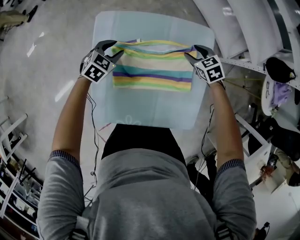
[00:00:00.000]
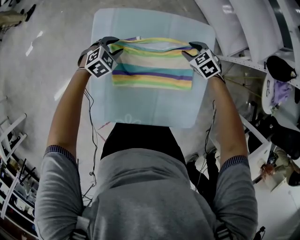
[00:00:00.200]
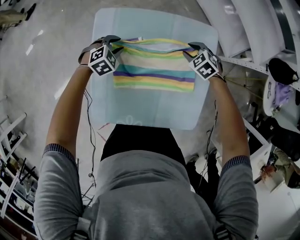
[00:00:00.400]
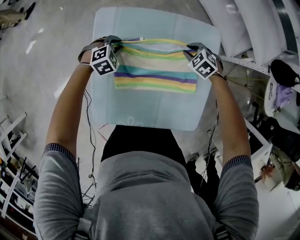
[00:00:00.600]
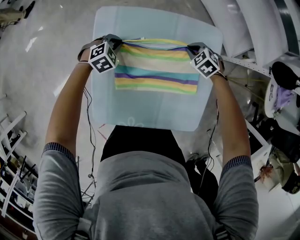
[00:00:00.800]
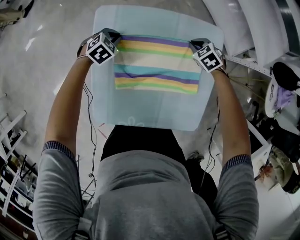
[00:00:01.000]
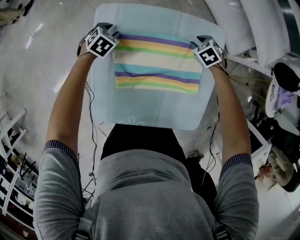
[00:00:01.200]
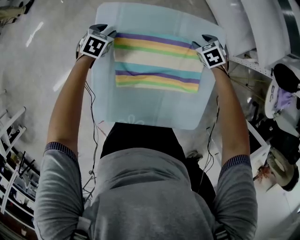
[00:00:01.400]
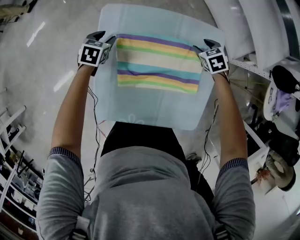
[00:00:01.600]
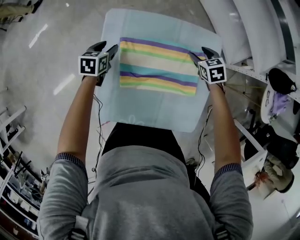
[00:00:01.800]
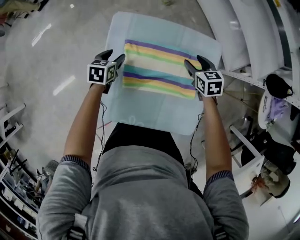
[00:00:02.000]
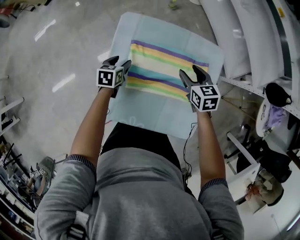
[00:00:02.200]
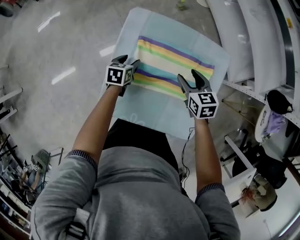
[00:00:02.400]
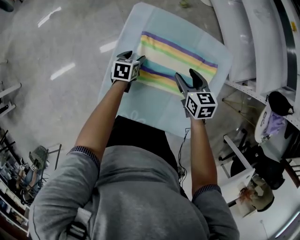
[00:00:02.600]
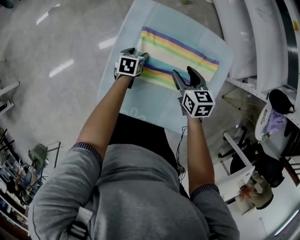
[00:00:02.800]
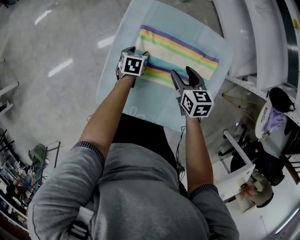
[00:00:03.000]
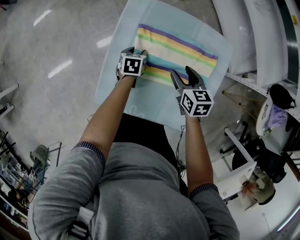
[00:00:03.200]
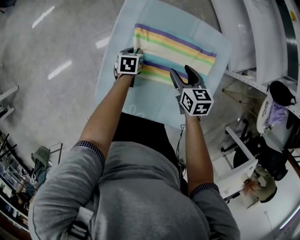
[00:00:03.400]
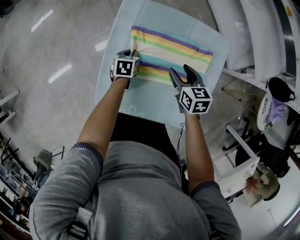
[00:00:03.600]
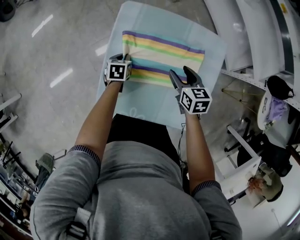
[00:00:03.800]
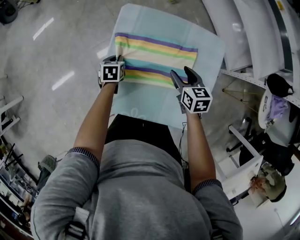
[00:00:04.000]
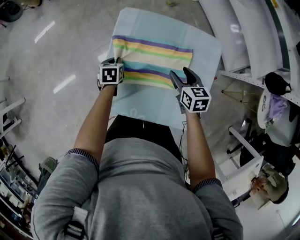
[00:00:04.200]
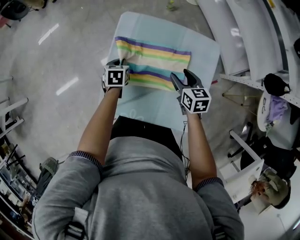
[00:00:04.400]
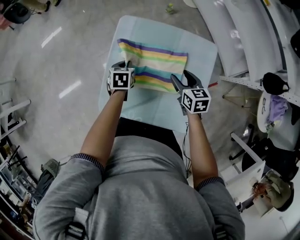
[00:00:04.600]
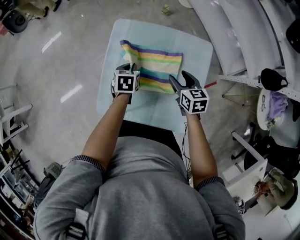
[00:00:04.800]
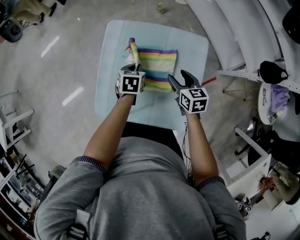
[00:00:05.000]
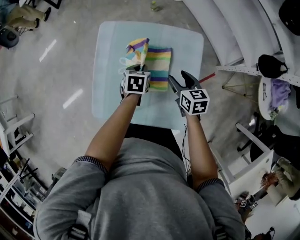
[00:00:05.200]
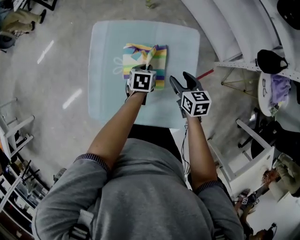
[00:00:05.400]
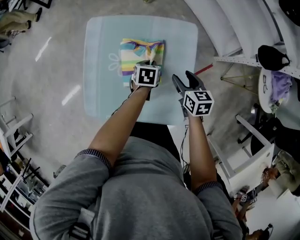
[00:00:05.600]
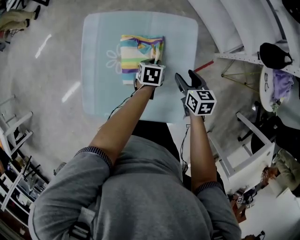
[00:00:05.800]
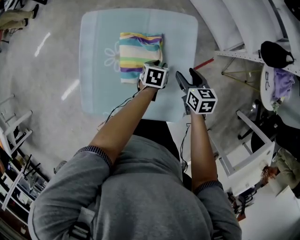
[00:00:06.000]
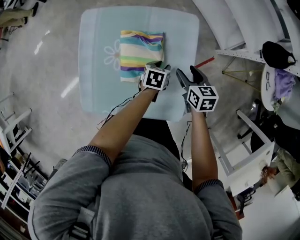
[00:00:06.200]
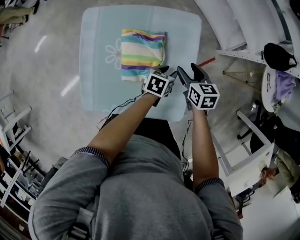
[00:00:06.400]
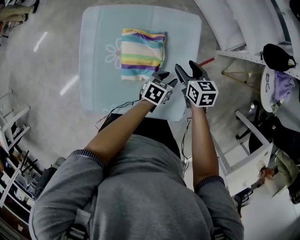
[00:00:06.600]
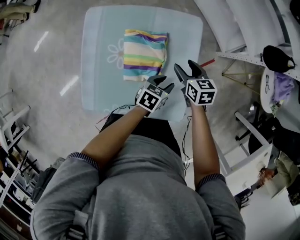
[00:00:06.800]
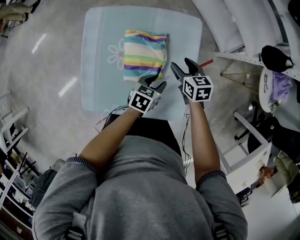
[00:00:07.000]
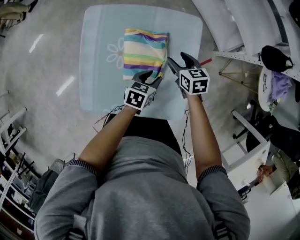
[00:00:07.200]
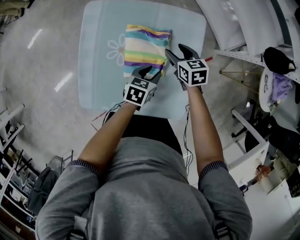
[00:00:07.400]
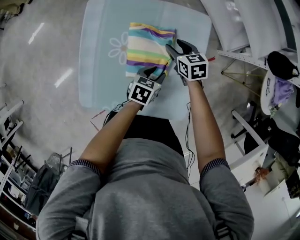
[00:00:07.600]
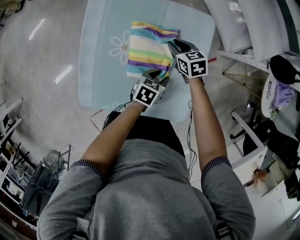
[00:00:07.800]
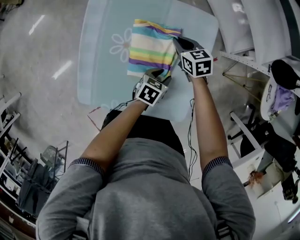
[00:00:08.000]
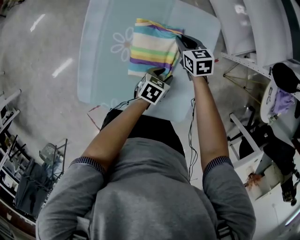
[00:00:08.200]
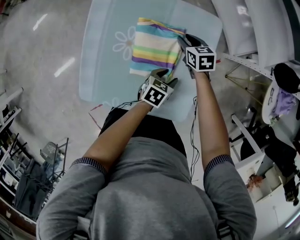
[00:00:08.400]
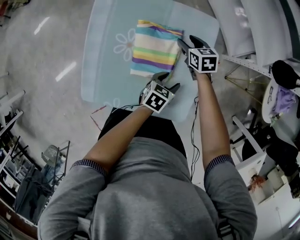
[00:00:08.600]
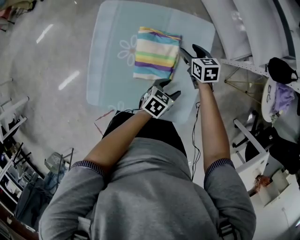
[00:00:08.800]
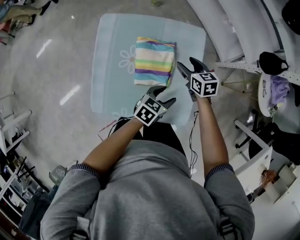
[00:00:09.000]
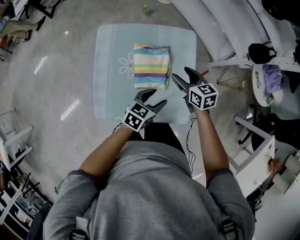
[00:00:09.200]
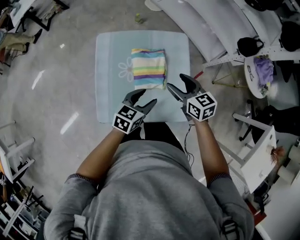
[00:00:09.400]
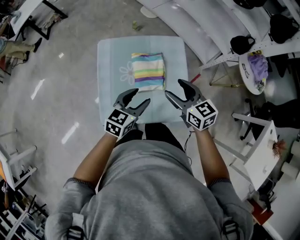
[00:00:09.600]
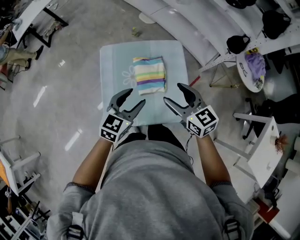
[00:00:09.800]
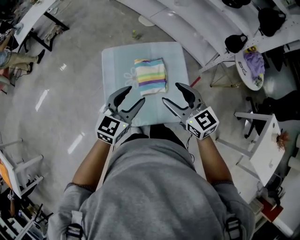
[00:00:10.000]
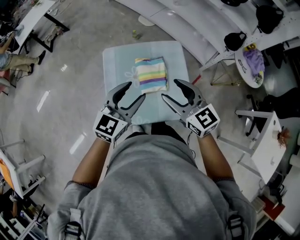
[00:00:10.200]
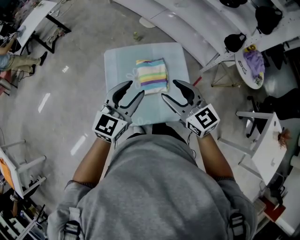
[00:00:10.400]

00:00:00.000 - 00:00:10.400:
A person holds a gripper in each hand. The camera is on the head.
00:00:00.000 - 00:00:01.400: The right gripper moves downward, about 5 cm, and closes and opens again. Meanwhile the left gripper shifts by some 10 cm, changes its angle by about 20 degrees, and closes, then reopens.
00:00:01.400 - 00:00:03.000: The right gripper goes roughly 25 cm to the left, backward and upward, and turns by about 40 degrees. Meanwhile the left gripper travels backward by roughly 15 cm, and rotates roughly 40 degrees.
00:00:03.000 - 00:00:04.400: The right gripper changes place by some 5 cm. Meanwhile the left gripper is displaced upward by about 10 cm, and closes.
00:00:04.400 - 00:00:06.000: The right gripper travels to the right by about 15 cm. Meanwhile the left gripper is displaced to the right by about 35 cm, and turns by roughly 20 degrees.
00:00:06.000 - 00:00:07.400: The left gripper travels backward by about 5 cm, while the right gripper travels to the left and forward by approximately 10 cm.
00:00:07.400 - 00:00:09.000: The left gripper travels upward and backward by roughly 10 cm. The right gripper shifts about 5 cm upward, and closes, then opens again.
00:00:09.000 - 00:00:10.400: The right gripper is displaced upward and backward by about 40 cm, and rotates some 30 degrees. The left gripper shifts about 40 cm upward and to the left, and changes its angle by about 40 degrees.

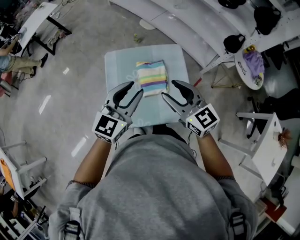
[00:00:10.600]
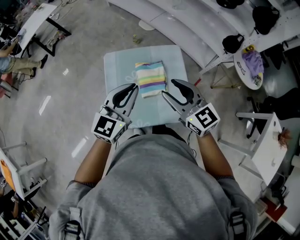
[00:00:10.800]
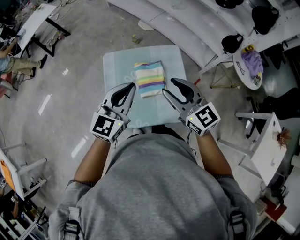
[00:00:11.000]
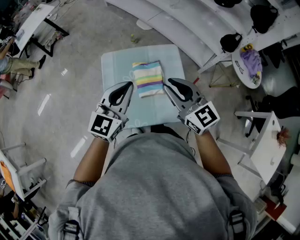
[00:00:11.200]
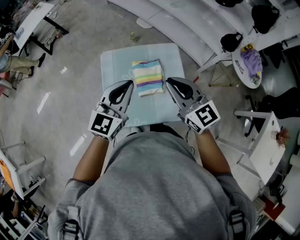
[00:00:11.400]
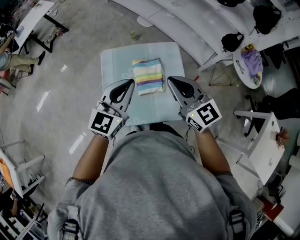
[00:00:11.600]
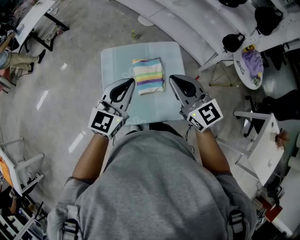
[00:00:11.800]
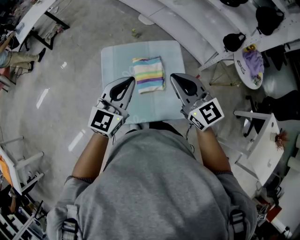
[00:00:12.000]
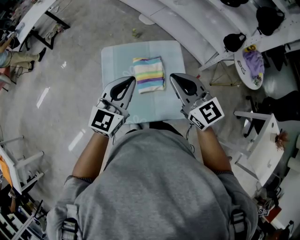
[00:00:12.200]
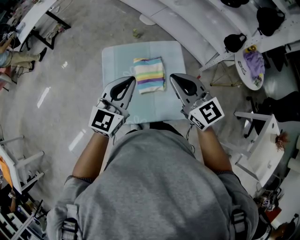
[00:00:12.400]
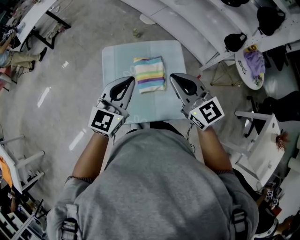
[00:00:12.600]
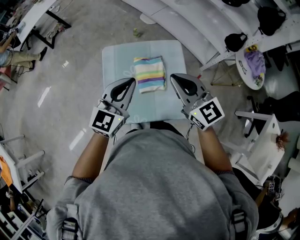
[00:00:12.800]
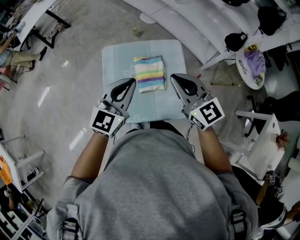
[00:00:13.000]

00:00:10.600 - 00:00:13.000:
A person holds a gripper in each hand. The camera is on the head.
00:00:10.600 - 00:00:11.800: The left gripper closes up, while the right gripper closes up.
00:00:11.800 - 00:00:13.000: The two grippers keep their place.

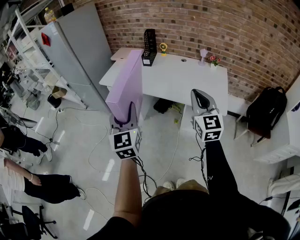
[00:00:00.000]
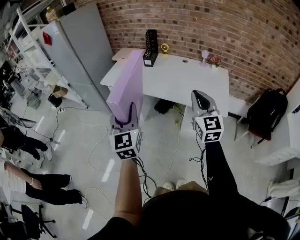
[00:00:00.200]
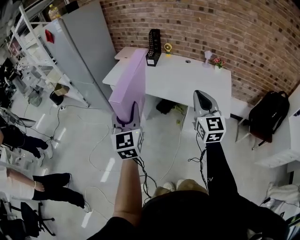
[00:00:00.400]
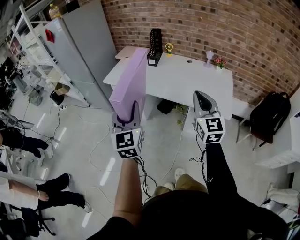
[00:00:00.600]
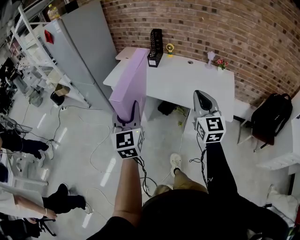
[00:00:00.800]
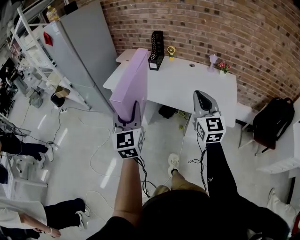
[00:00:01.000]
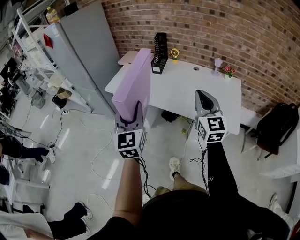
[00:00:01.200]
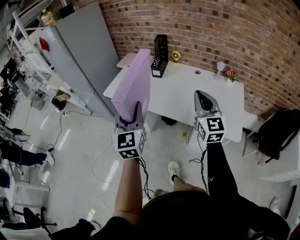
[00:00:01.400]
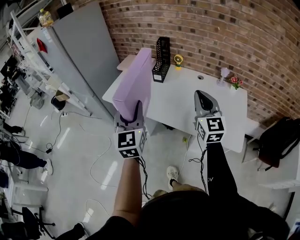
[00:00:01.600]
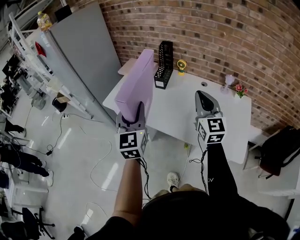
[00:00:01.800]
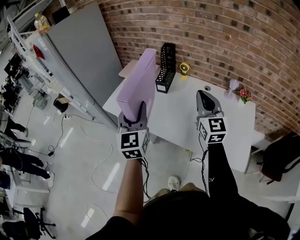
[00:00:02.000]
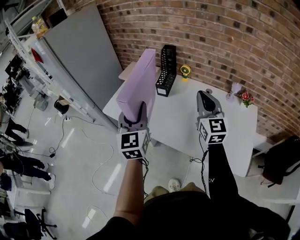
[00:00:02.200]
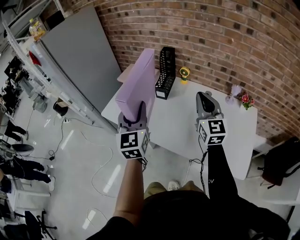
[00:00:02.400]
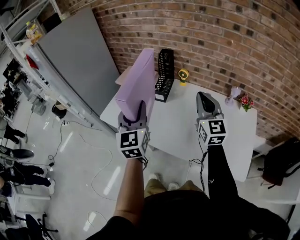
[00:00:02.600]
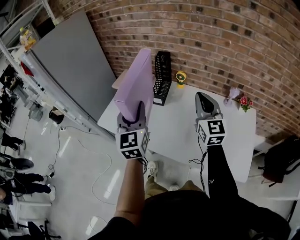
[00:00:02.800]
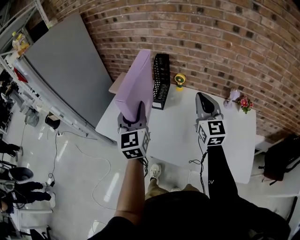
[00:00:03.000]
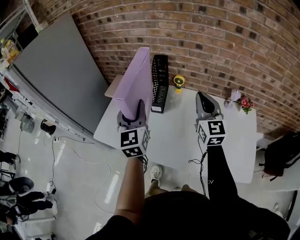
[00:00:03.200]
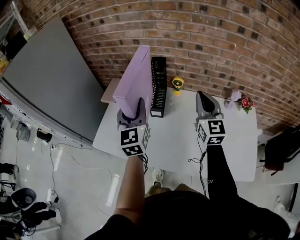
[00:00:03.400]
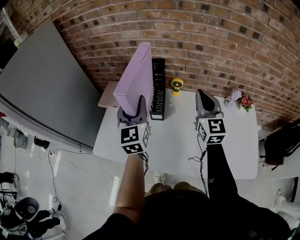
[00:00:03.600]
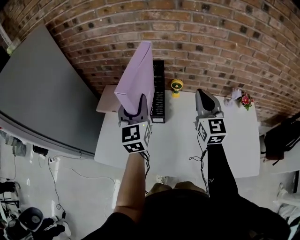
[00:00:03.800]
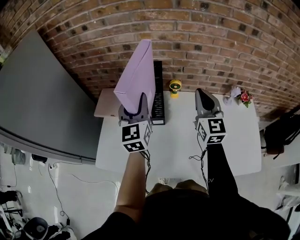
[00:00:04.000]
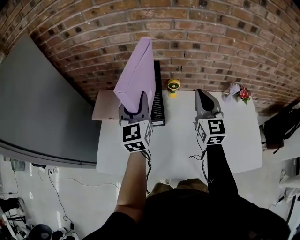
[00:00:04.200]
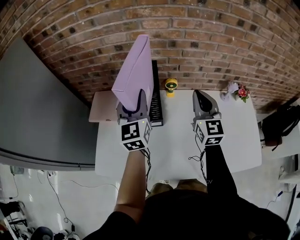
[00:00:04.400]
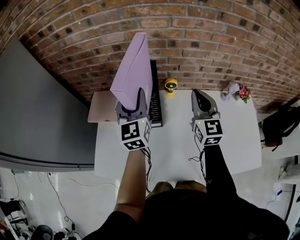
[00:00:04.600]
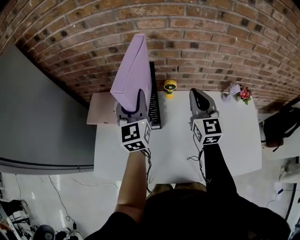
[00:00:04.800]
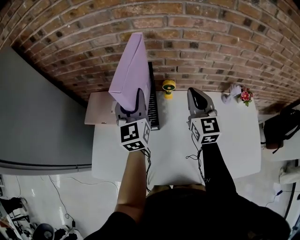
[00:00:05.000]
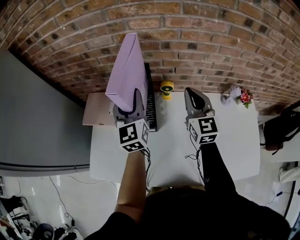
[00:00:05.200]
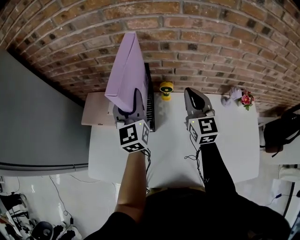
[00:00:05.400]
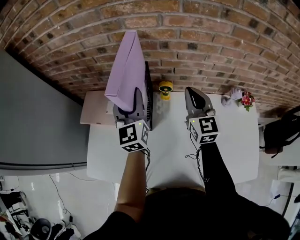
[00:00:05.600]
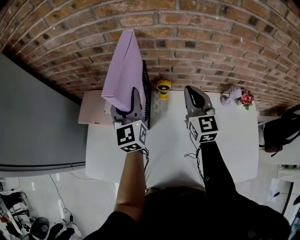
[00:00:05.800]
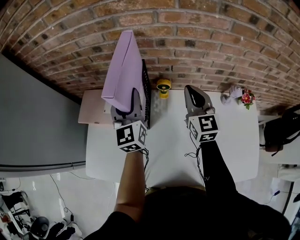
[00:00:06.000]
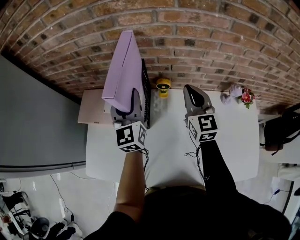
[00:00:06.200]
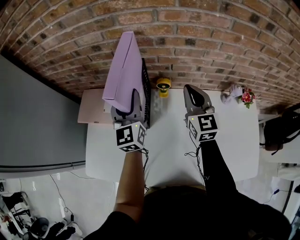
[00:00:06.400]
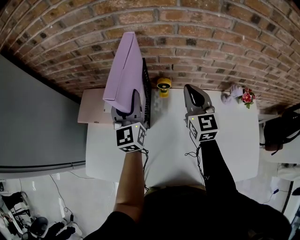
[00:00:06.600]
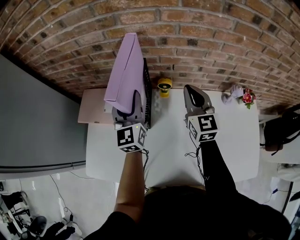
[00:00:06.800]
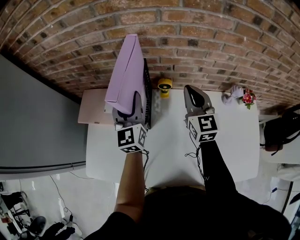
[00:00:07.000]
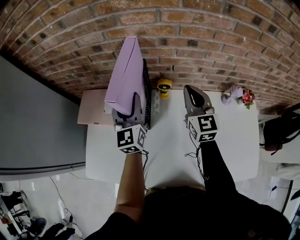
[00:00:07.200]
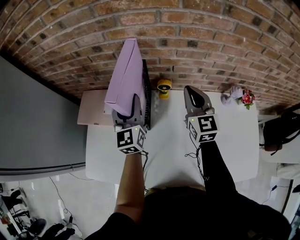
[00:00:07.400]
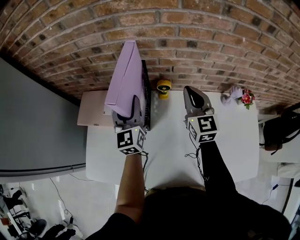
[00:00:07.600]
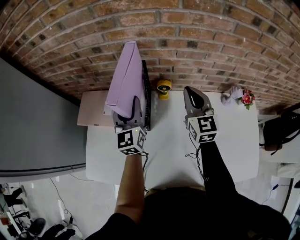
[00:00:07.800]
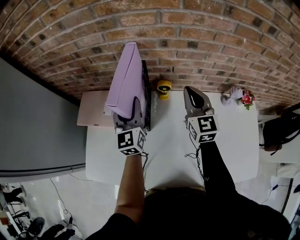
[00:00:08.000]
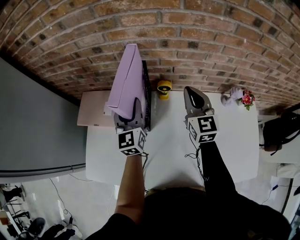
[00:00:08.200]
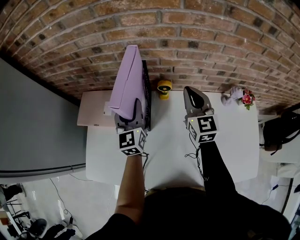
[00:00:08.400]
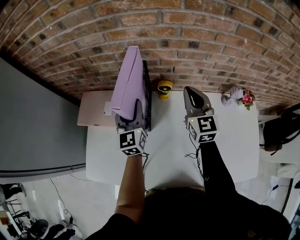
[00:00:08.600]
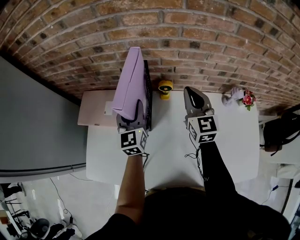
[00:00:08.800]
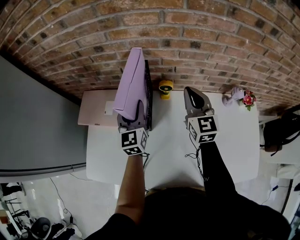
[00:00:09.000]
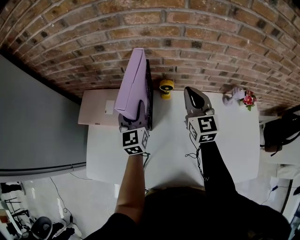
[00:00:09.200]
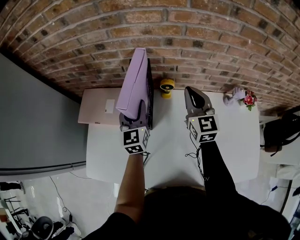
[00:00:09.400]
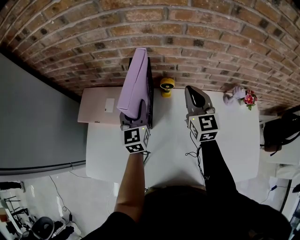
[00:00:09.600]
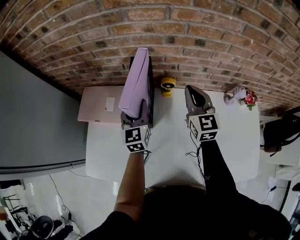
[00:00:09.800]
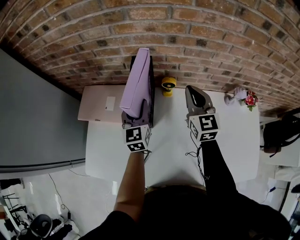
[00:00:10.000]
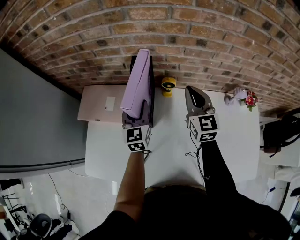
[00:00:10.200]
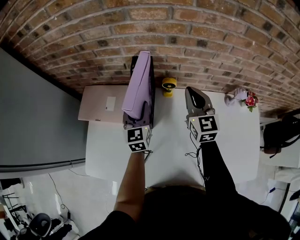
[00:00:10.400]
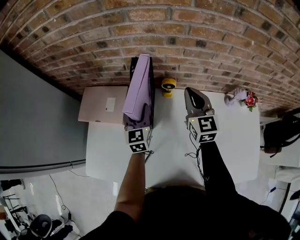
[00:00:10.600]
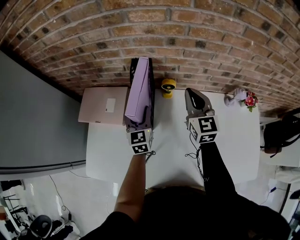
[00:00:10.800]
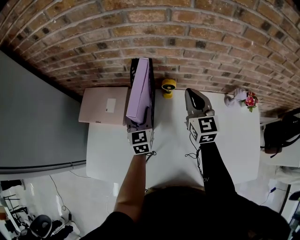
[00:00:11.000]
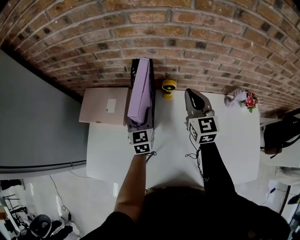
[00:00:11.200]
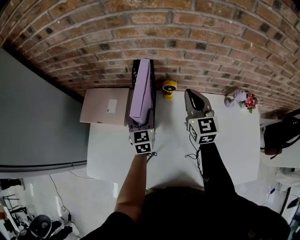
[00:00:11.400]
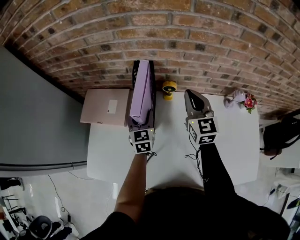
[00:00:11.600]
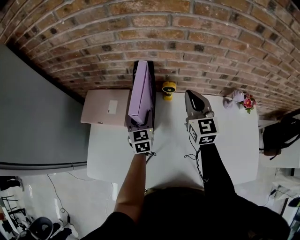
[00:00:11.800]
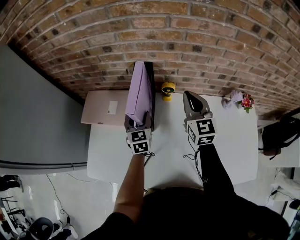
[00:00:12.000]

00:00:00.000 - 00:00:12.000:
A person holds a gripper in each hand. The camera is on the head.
00:00:00.000 - 00:00:01.600: The two grippers go roughly 25 cm forward.
00:00:01.600 - 00:00:03.000: Both grippers travel together forward, about 25 cm.
00:00:03.000 - 00:00:04.400: The left gripper shifts some 25 cm forward, and turns by roughly 20 degrees. The right gripper shifts about 15 cm forward, and turns by roughly 20 degrees.
00:00:04.400 - 00:00:06.000: The right gripper moves forward and downward, about 10 cm, while the left gripper goes about 10 cm forward and to the right.
00:00:06.000 - 00:00:07.600: The grippers make only small movements.
00:00:07.600 - 00:00:09.000: The grippers make only small movements.
00:00:09.000 - 00:00:10.400: The grippers move only a little.
00:00:10.400 - 00:00:12.000: The grippers move only a little.
